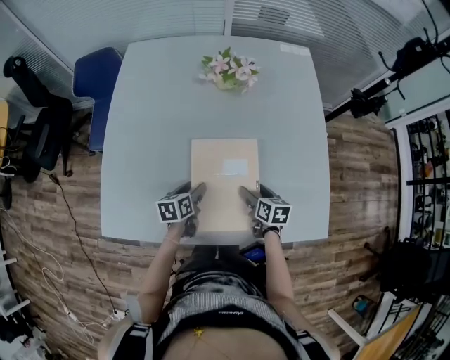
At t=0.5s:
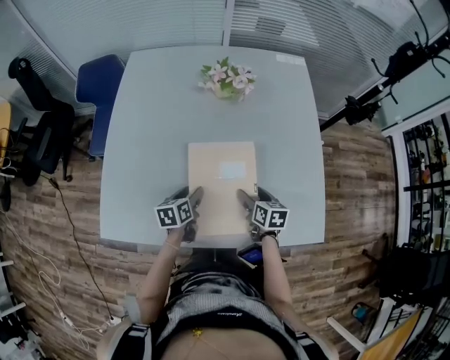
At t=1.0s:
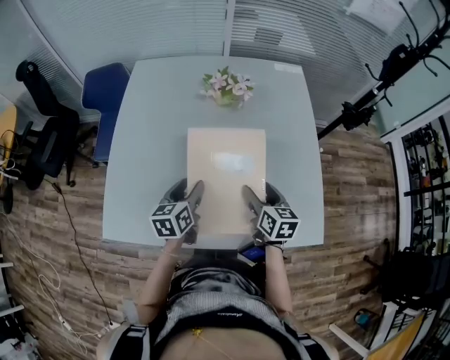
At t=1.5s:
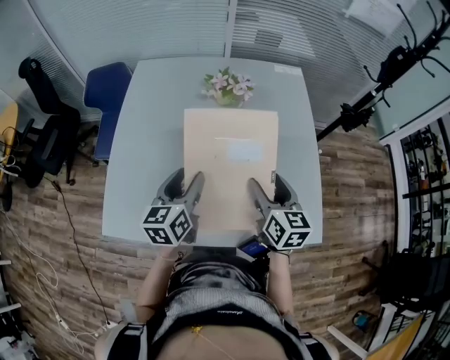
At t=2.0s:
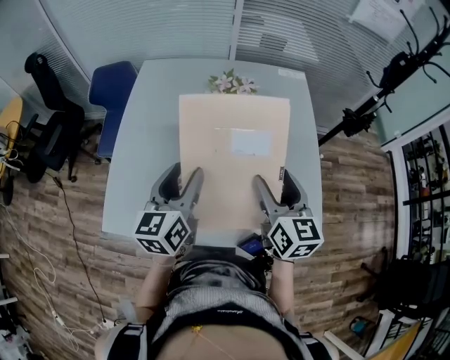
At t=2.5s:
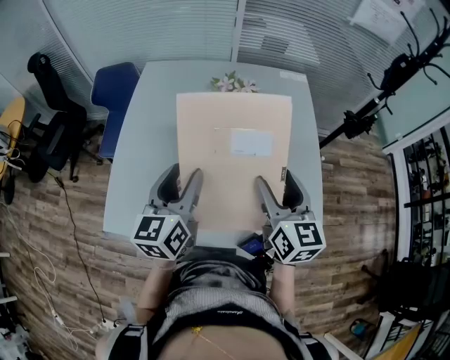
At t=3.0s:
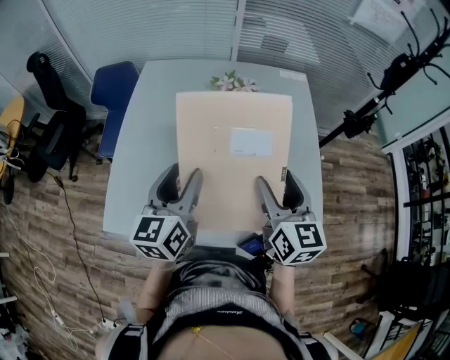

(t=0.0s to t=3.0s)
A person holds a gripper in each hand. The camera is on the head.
t=0.0s - t=1.5s: Both grippers move upward, about 25 cm. The left gripper swivels some 30 degrees. The right gripper changes its angle by about 30 degrees.
t=1.5s - t=3.0s: The grippers both shift upward by some 10 cm.

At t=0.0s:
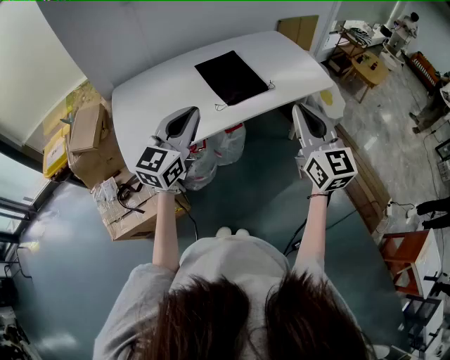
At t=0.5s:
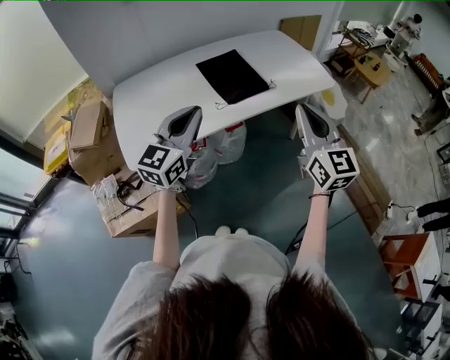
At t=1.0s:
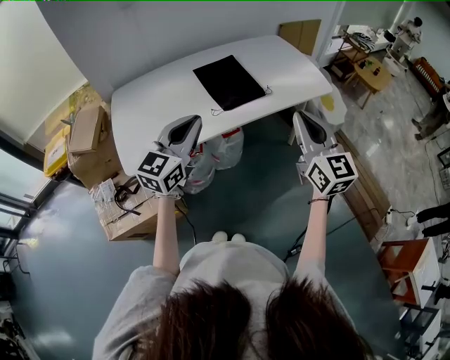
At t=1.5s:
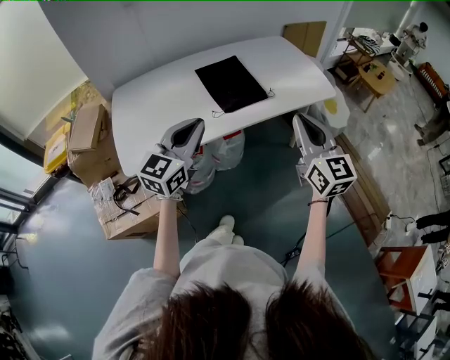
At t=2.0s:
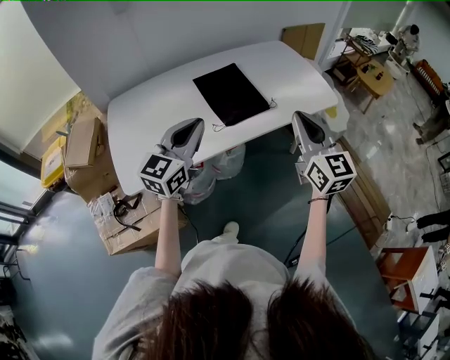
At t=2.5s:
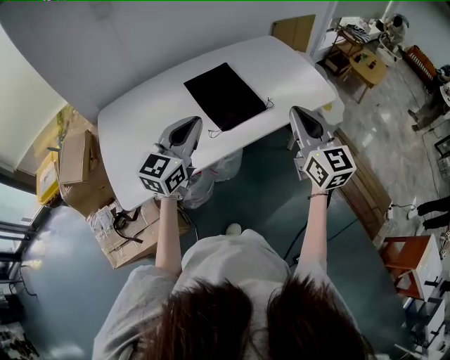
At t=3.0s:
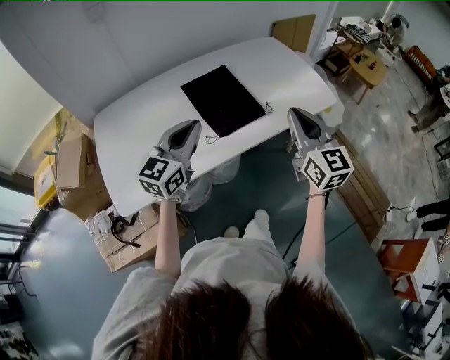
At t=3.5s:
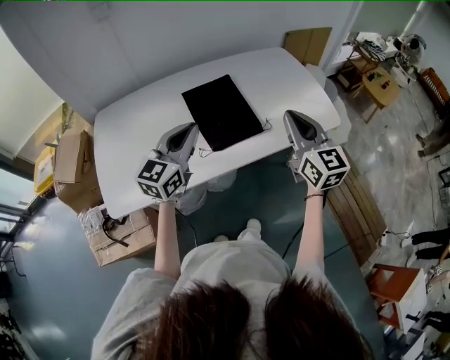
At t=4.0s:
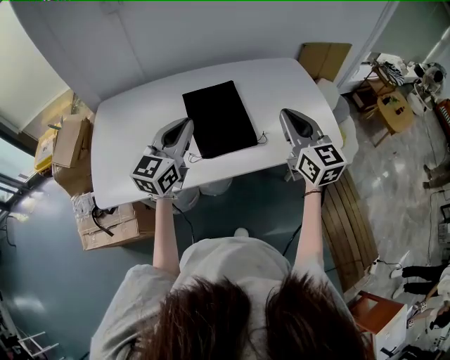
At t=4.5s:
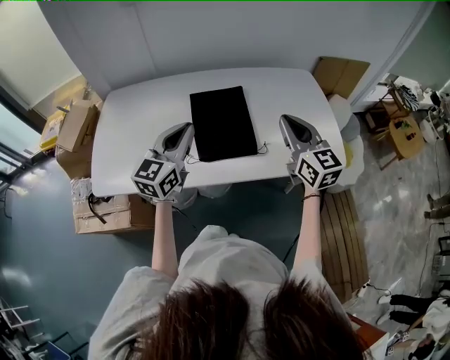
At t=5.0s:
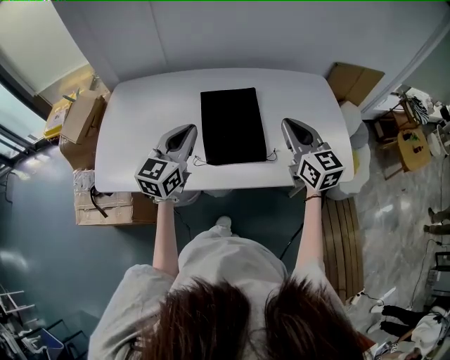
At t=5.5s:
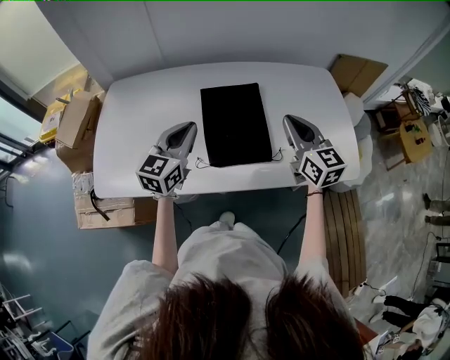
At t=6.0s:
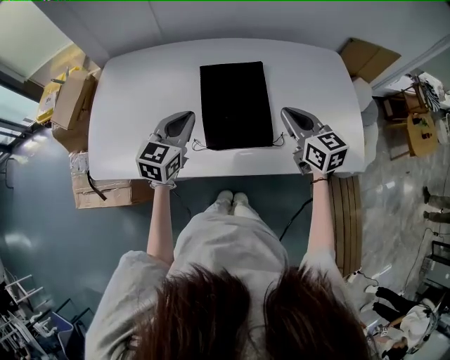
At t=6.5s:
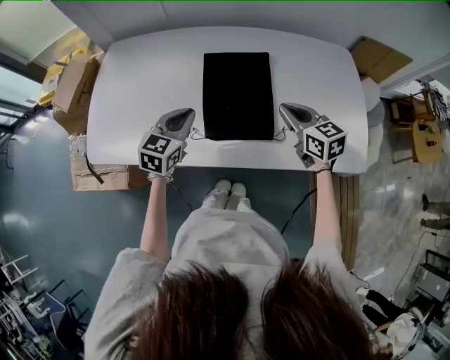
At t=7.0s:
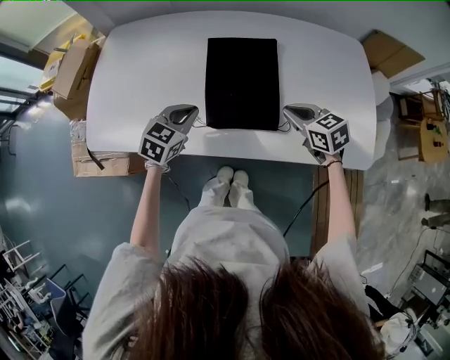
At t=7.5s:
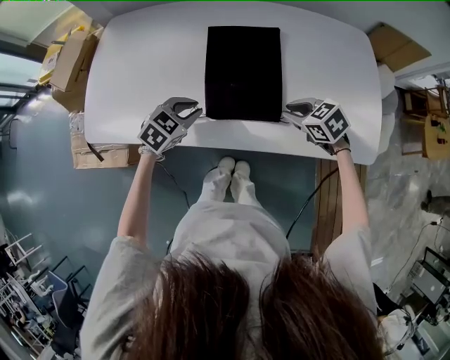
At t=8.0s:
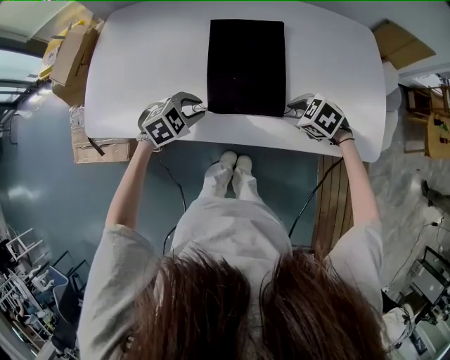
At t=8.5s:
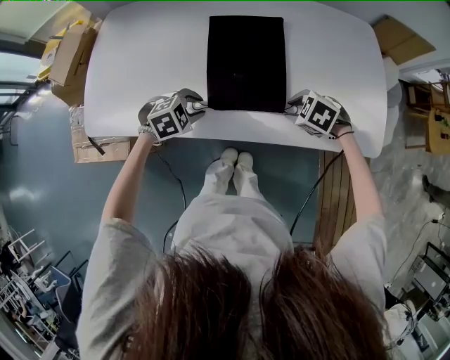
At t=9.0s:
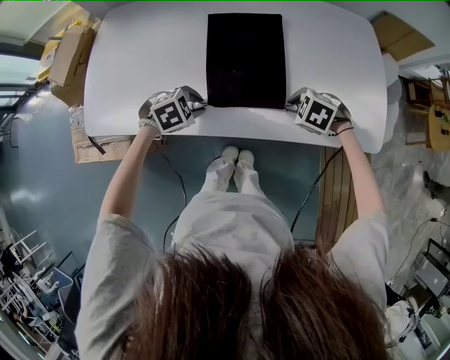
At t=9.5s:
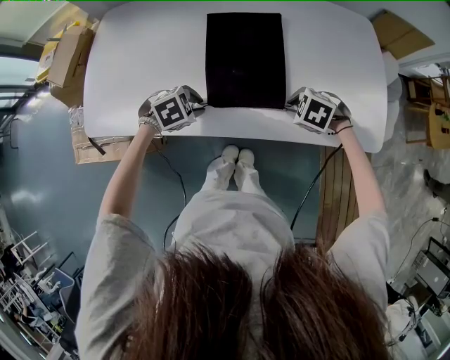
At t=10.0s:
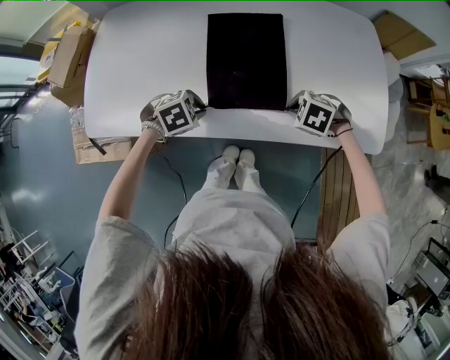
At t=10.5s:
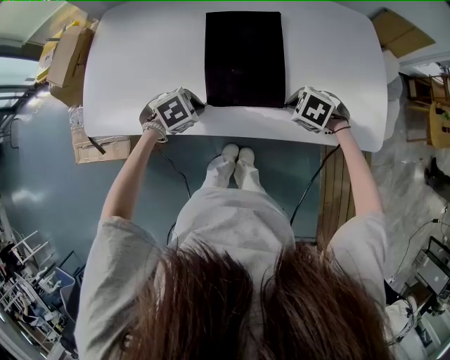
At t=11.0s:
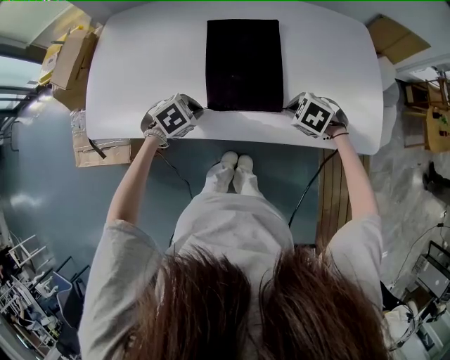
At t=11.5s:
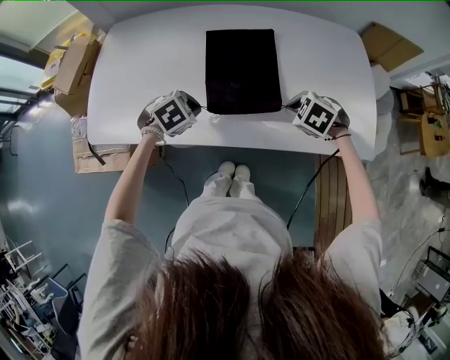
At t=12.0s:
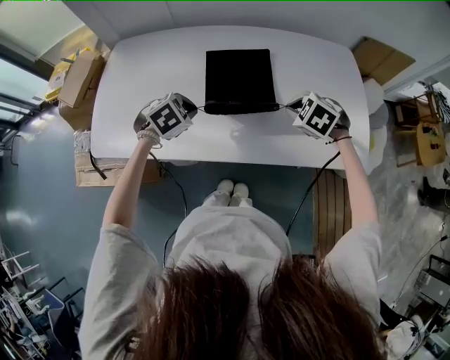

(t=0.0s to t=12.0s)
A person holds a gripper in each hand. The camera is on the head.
t=0.0s - t=2.0s: Both grippers move forward, roughly 10 cm.
t=2.0s - t=4.0s: The grippers both shift forward by roughly 20 cm.
t=4.0s - t=6.0s: The grippers both shift downward and forward by about 15 cm. The left gripper swivels roughly 20 degrees. The right gripper changes its angle by some 30 degrees.
t=6.0s - t=8.0s: Both grippers move downward, some 15 cm. The right gripper points its fingers roughly 50 degrees further downward, and opens its fingers; the left gripper tilts its fingers about 40 degrees downward, and opens up.
t=8.0s - t=10.0s: The right gripper closes.
t=10.0s - t=12.0s: The two grippers go about 10 cm upward.

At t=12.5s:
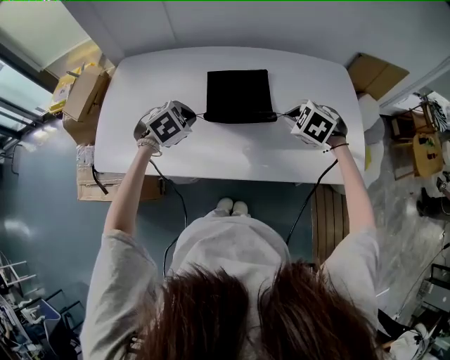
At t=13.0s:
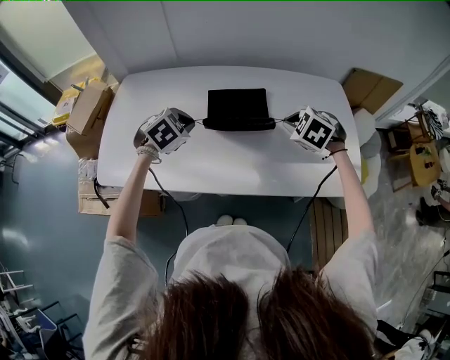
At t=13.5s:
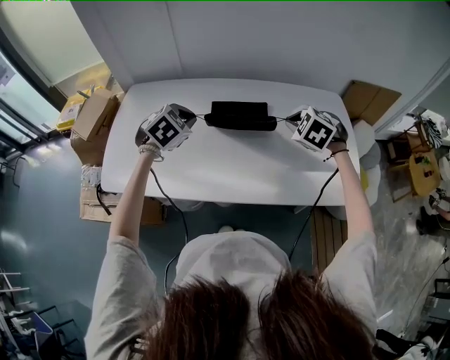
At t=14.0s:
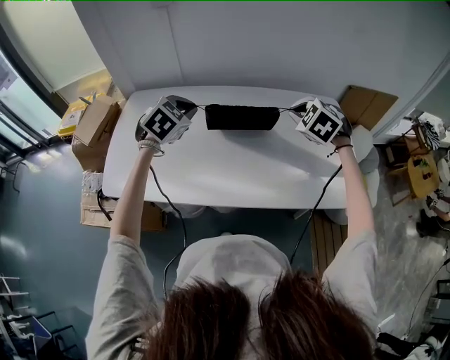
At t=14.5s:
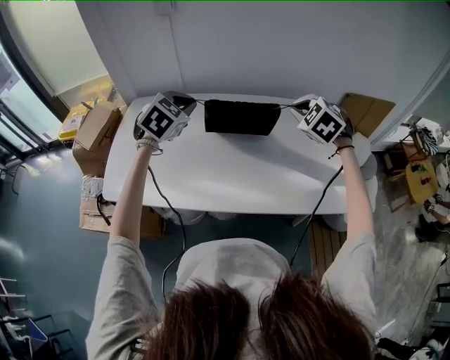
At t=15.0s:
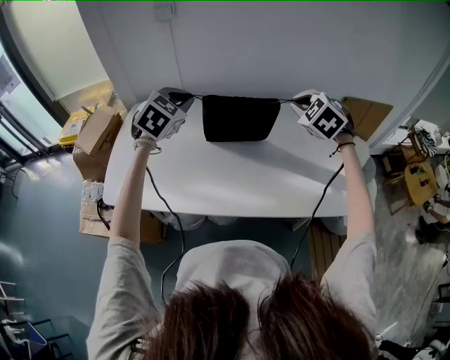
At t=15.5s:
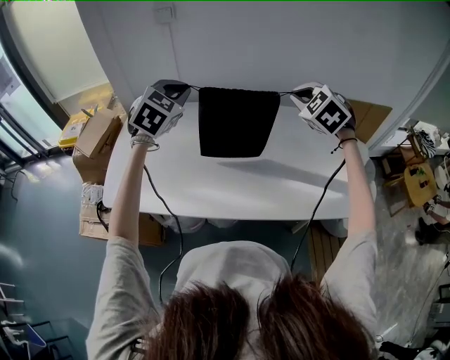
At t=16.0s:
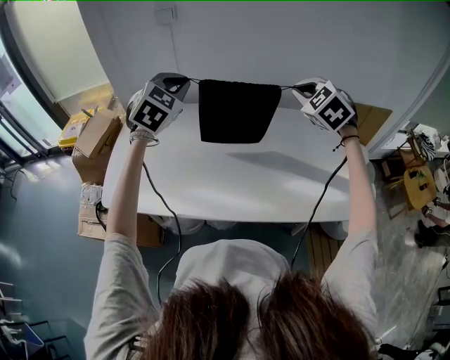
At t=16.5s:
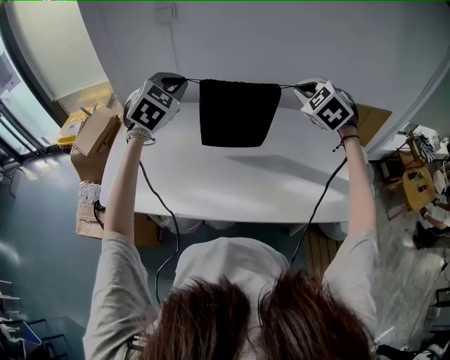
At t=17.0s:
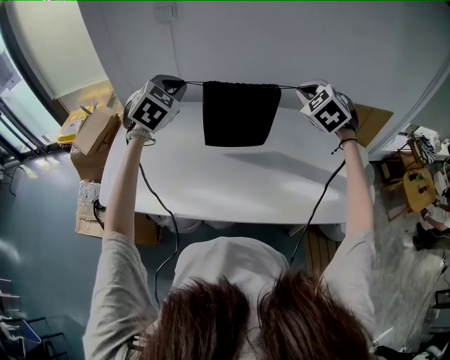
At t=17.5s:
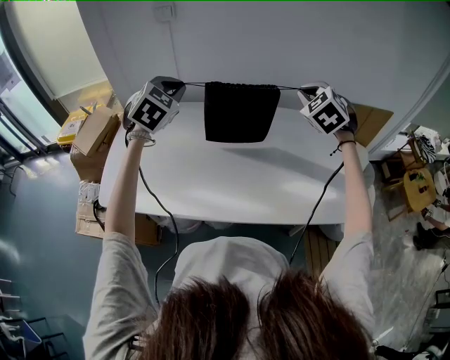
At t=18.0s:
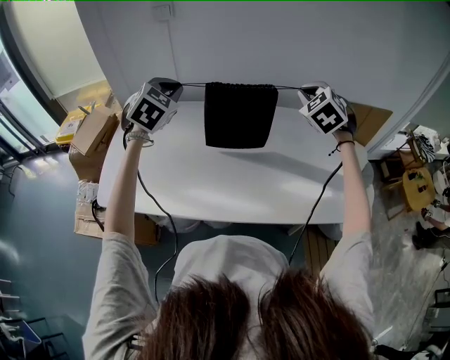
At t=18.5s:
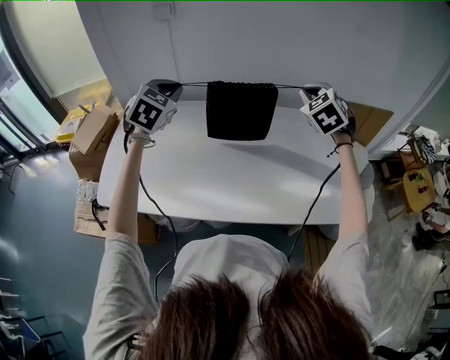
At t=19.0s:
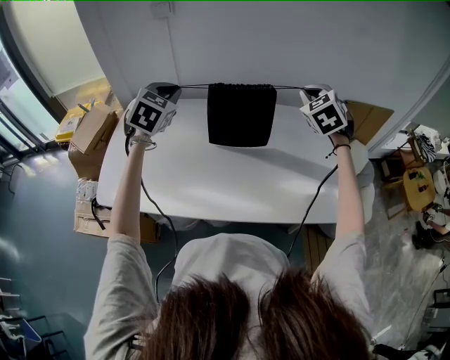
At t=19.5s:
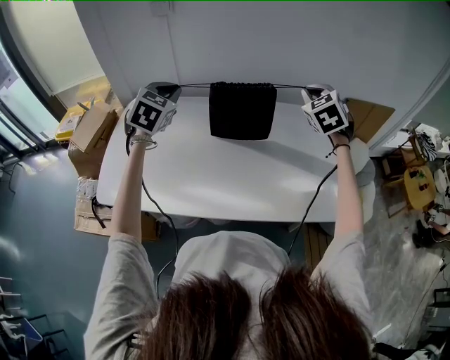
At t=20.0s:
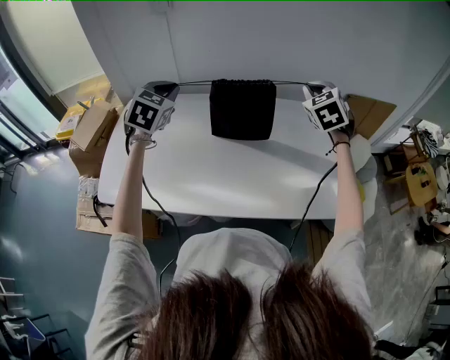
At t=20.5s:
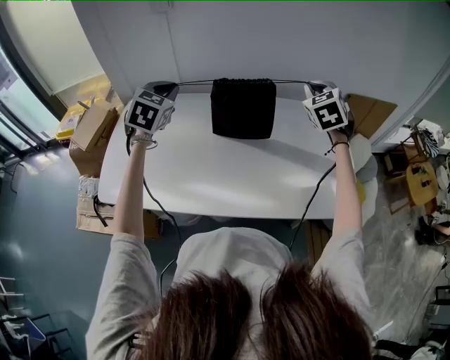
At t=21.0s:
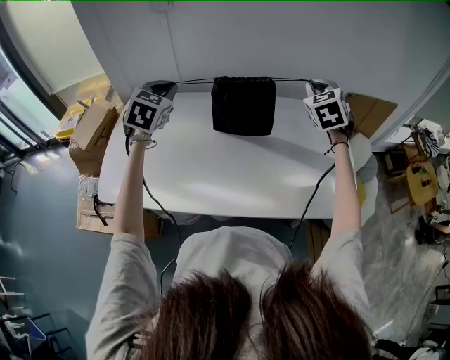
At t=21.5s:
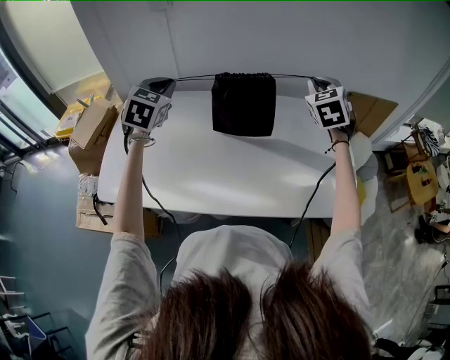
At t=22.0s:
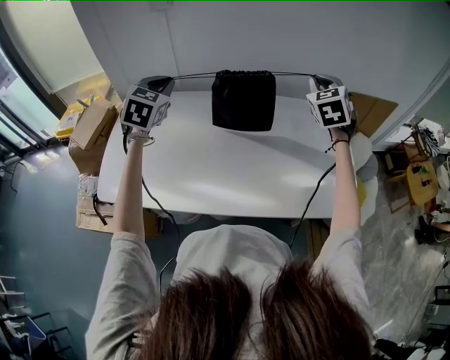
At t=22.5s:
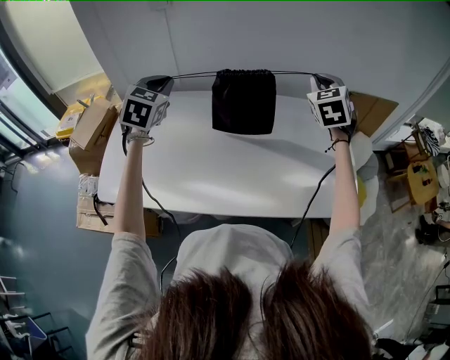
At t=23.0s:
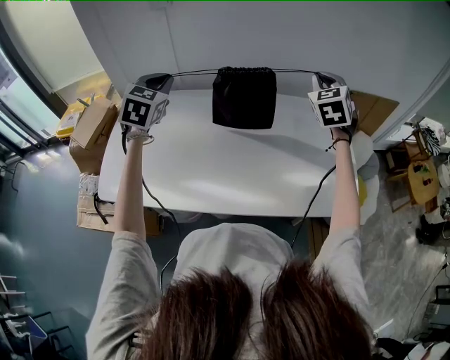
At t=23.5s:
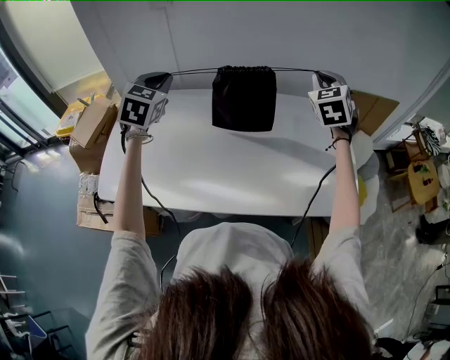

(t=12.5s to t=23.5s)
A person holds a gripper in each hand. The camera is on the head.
t=12.5s - t=14.5s: The left gripper goes approximately 20 cm upward, and changes its angle by roughly 30 degrees, while the right gripper travels upward and forward by about 20 cm, and rotates some 20 degrees.
t=14.5s - t=16.0s: Both grippers travel together upward, some 10 cm.
t=16.0s - t=18.0s: The right gripper moves approximately 5 cm.
t=18.0s - t=20.0s: The grippers move only a little.
t=20.0s - t=23.5s: The grippers make only small movements.

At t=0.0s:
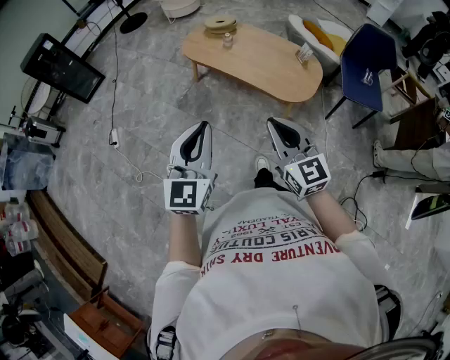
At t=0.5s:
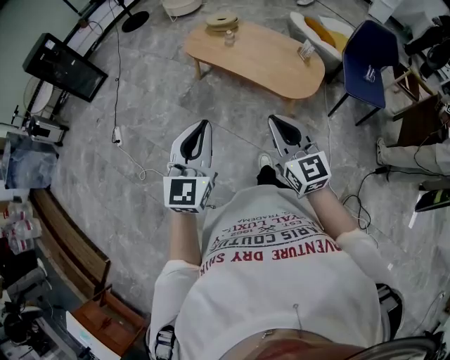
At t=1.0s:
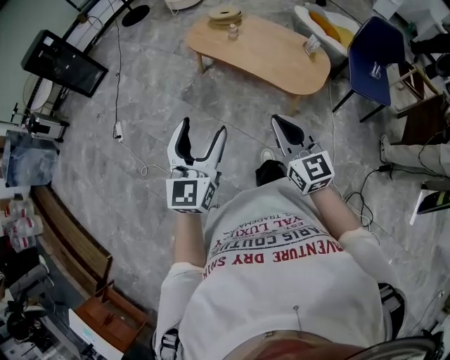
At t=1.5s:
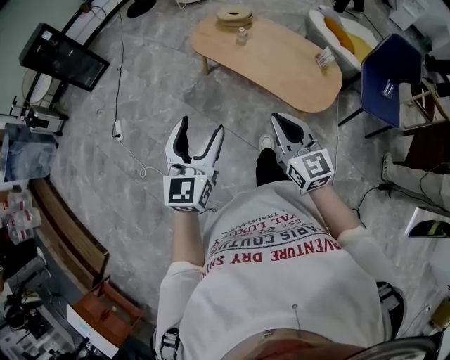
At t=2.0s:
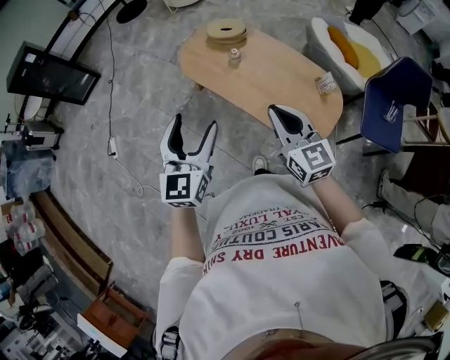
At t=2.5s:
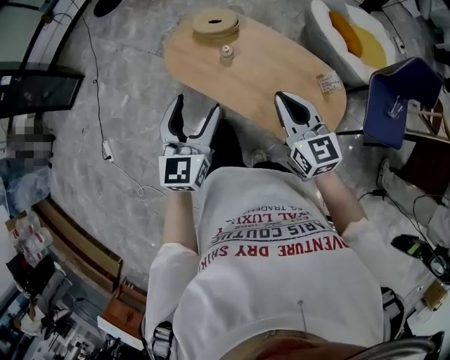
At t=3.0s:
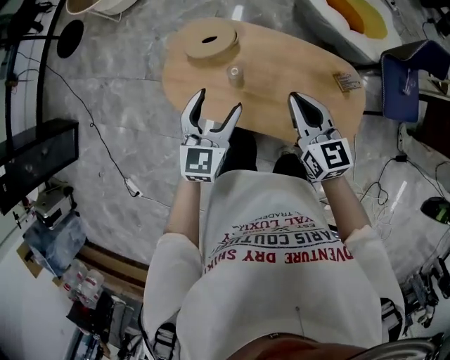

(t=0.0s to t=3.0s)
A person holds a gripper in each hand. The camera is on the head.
t=0.0s - t=1.5s: The two grippers go roughly 15 cm forward. The left gripper opens.
t=1.5s - t=3.0s: The pair of grippers is taken about 60 cm. The left gripper changes its angle by approximately 30 degrees. Meanwhile the right gripper changes its angle by approximately 30 degrees.
